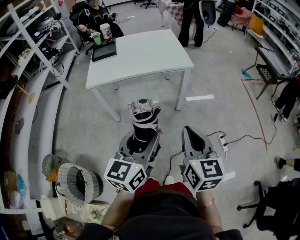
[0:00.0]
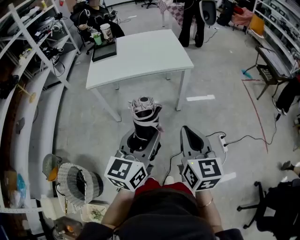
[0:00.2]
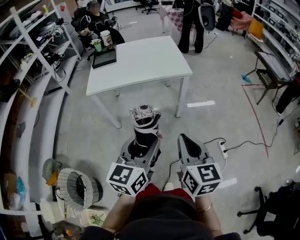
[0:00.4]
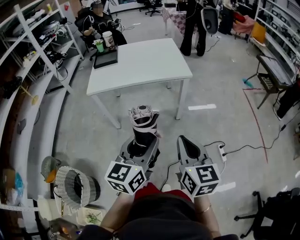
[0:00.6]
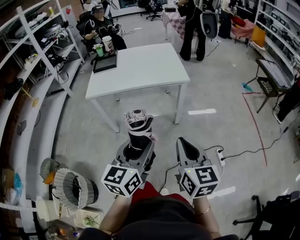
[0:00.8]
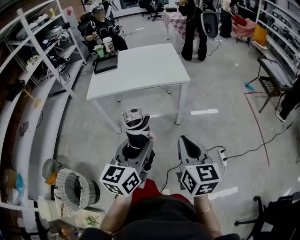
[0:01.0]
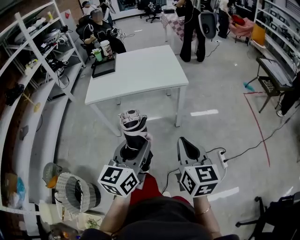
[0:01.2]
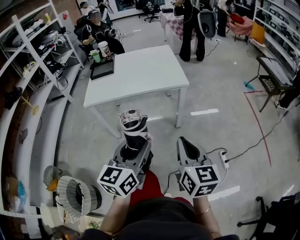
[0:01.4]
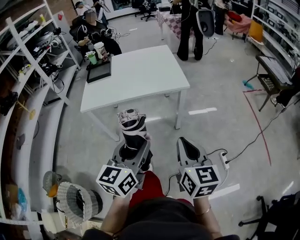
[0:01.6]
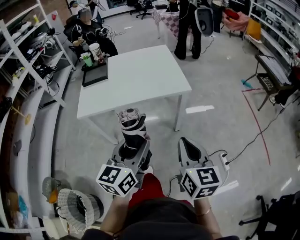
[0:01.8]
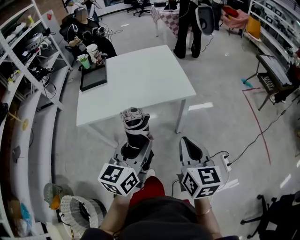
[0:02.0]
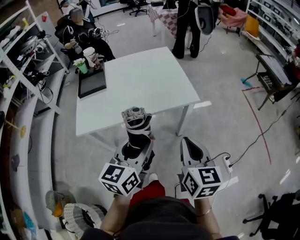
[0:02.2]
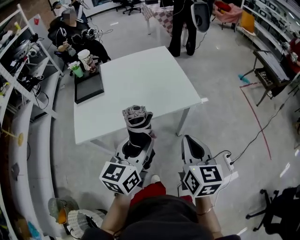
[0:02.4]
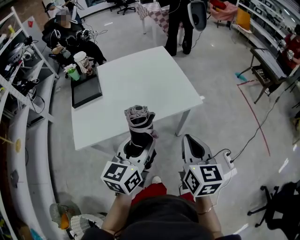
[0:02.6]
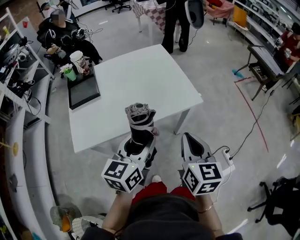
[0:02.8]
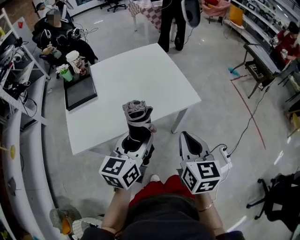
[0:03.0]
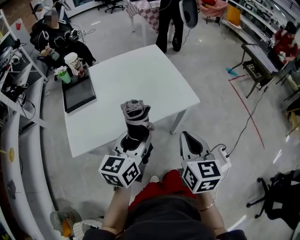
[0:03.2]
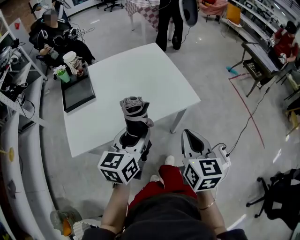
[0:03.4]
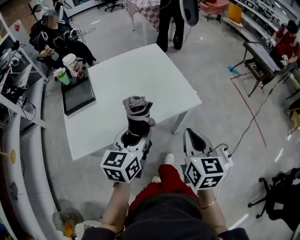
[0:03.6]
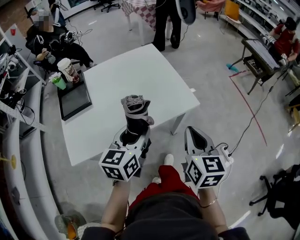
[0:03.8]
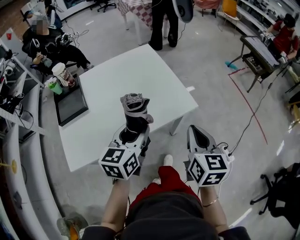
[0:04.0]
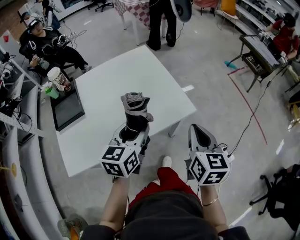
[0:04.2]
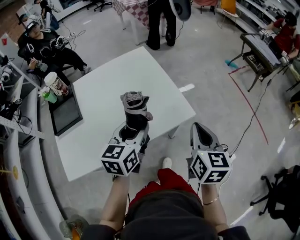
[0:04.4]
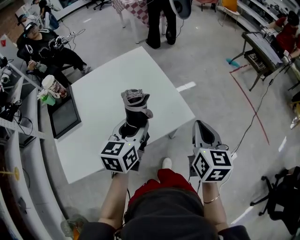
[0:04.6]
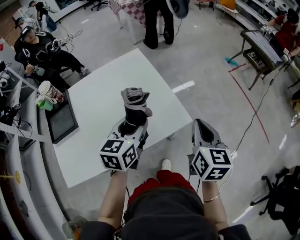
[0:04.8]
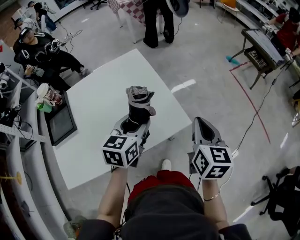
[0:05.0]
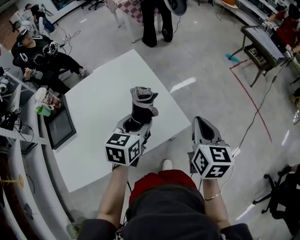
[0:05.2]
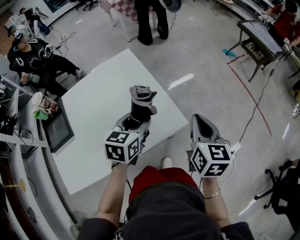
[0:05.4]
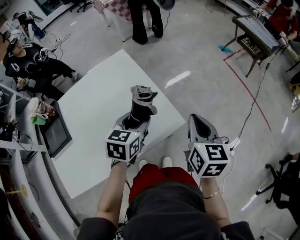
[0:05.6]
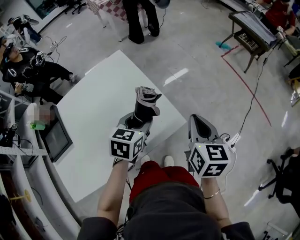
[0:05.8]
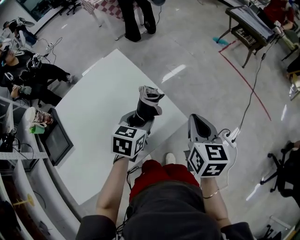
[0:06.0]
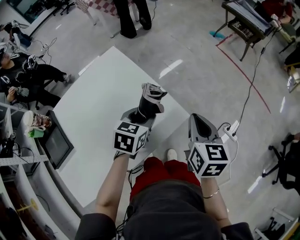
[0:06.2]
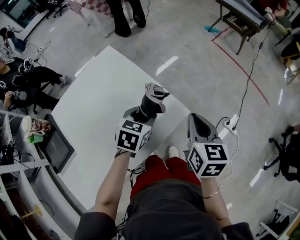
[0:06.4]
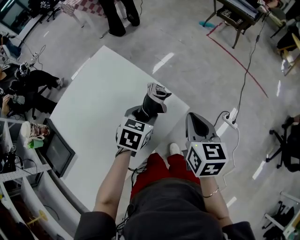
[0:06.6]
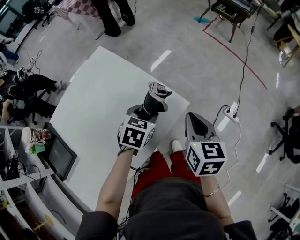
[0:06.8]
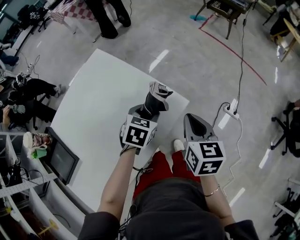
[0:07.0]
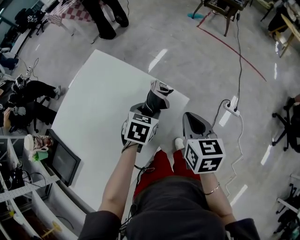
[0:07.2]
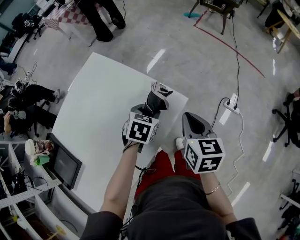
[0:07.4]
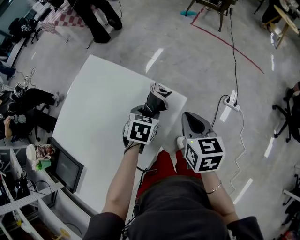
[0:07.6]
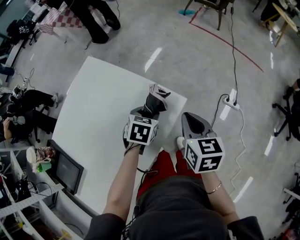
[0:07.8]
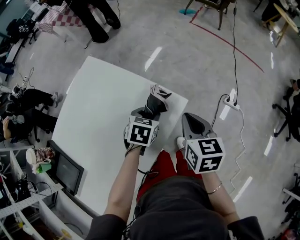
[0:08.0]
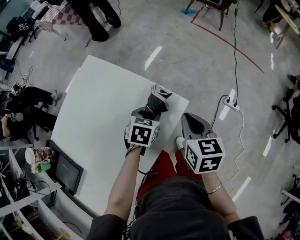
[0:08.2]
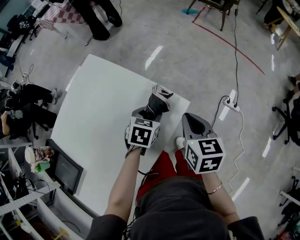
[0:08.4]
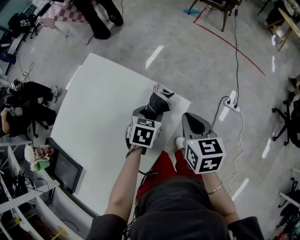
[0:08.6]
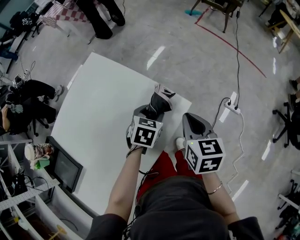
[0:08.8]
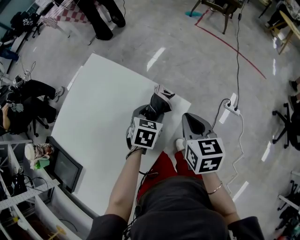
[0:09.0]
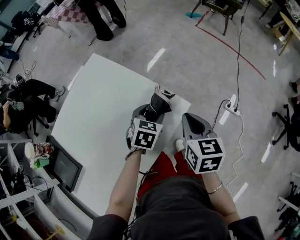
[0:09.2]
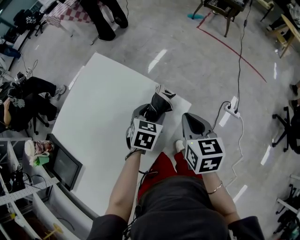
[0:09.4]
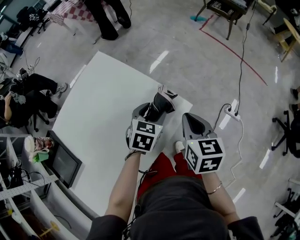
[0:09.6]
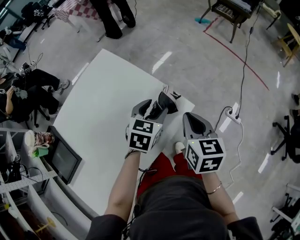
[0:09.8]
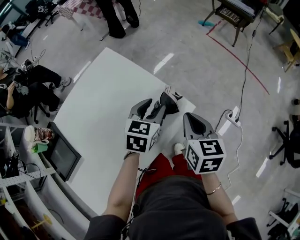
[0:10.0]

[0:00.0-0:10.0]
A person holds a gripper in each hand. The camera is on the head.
0:00.0 to 0:01.4: The grippers both shift forward by approximately 5 cm.
0:01.4 to 0:02.8: The grippers both shift forward and to the left by roughly 35 cm.
0:02.8 to 0:04.2: The left gripper travels forward by about 15 cm, while the right gripper goes roughly 15 cm forward and to the right.
0:04.2 to 0:05.8: The right gripper is displaced forward and to the right by some 15 cm, while the left gripper shifts about 20 cm forward, to the right and downward, and rotates some 30 degrees.
0:05.8 to 0:07.2: The left gripper travels downward by some 10 cm, and changes its angle by some 30 degrees. Meanwhile the right gripper moves backward and downward, approximately 10 cm.
0:07.2 to 0:08.6: The grippers stay close to where they were, moving slightly.
0:08.6 to 0:10.0: The left gripper heads upward, covering some 10 cm, and rotates some 20 degrees.

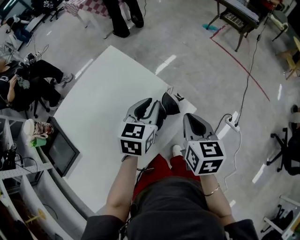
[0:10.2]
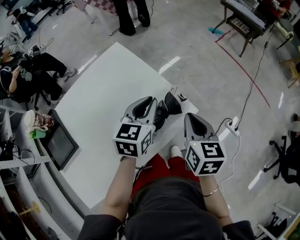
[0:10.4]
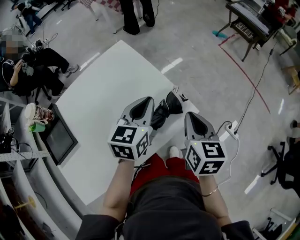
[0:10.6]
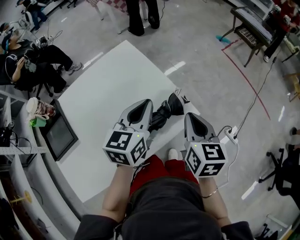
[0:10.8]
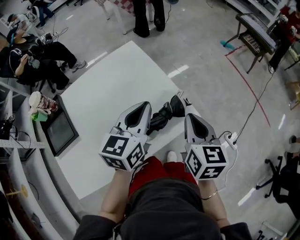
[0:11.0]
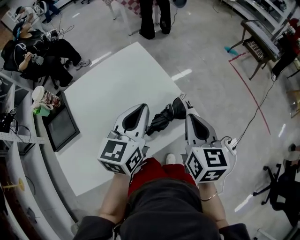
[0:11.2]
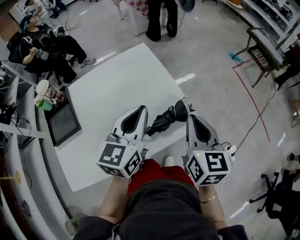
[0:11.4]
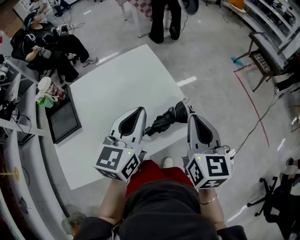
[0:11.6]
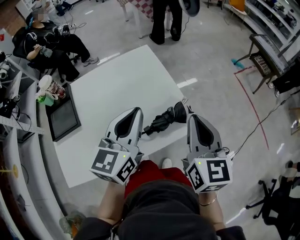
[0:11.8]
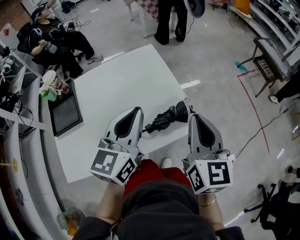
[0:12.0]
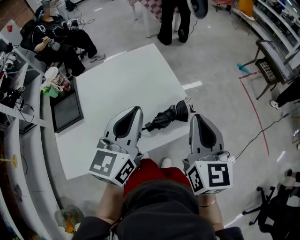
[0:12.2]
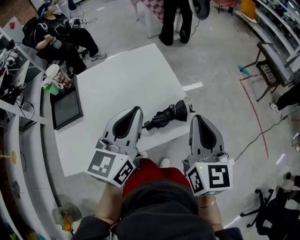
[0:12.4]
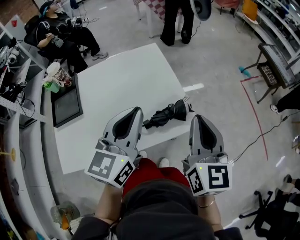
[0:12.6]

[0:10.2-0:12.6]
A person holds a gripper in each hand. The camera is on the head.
0:10.2 to 0:11.4: The left gripper goes about 15 cm upward, to the left and backward, and rotates approximately 30 degrees, while the right gripper goes roughly 10 cm upward.
0:11.4 to 0:12.6: The right gripper moves upward, about 5 cm, while the left gripper is displaced backward and upward by approximately 10 cm.

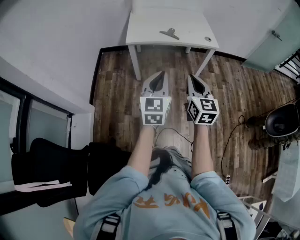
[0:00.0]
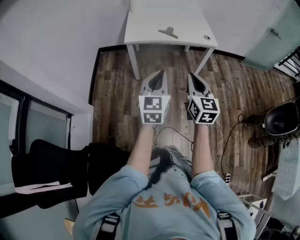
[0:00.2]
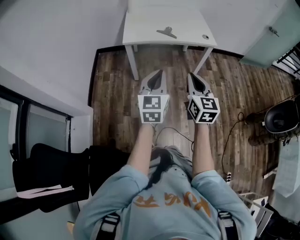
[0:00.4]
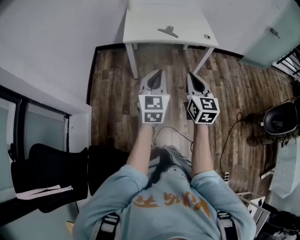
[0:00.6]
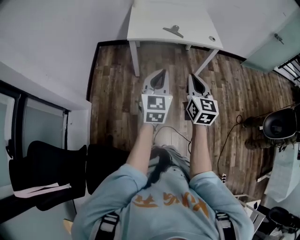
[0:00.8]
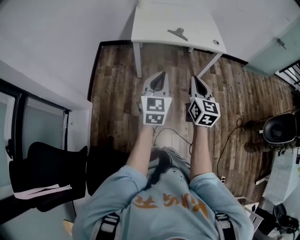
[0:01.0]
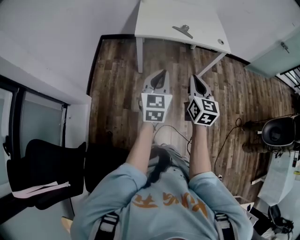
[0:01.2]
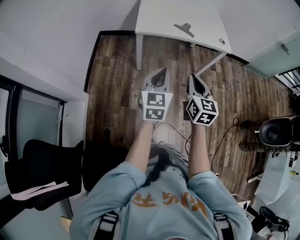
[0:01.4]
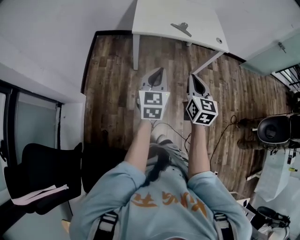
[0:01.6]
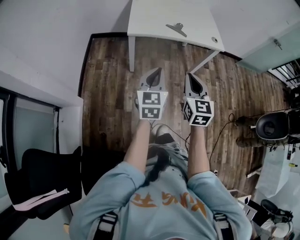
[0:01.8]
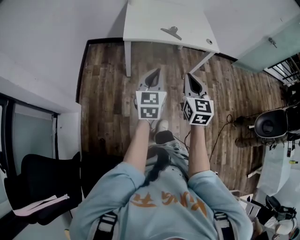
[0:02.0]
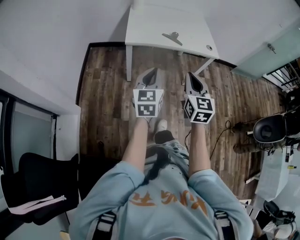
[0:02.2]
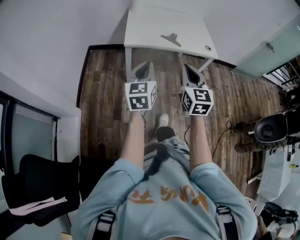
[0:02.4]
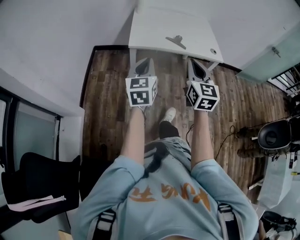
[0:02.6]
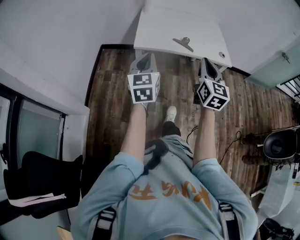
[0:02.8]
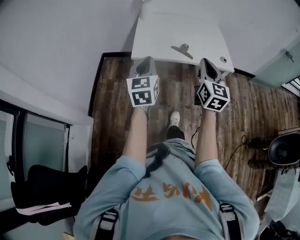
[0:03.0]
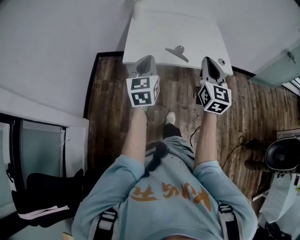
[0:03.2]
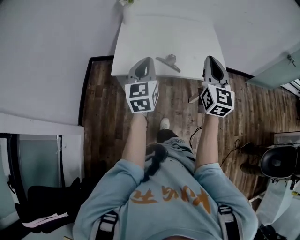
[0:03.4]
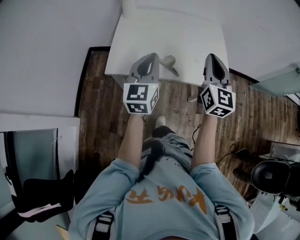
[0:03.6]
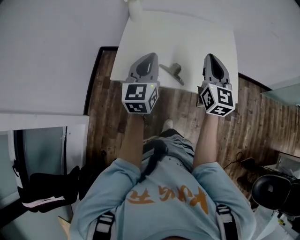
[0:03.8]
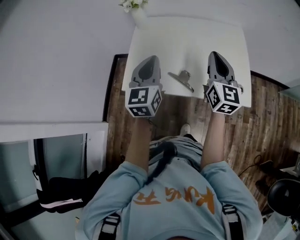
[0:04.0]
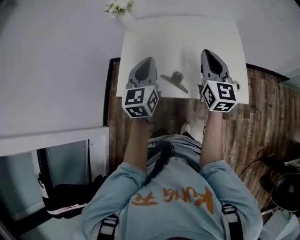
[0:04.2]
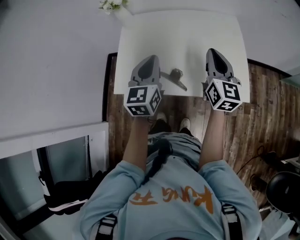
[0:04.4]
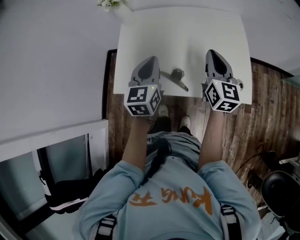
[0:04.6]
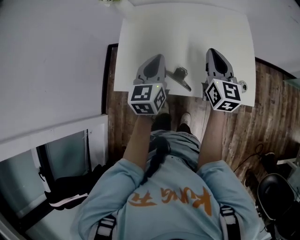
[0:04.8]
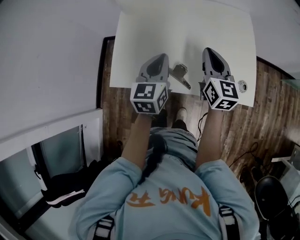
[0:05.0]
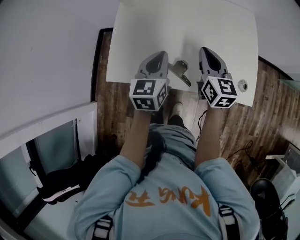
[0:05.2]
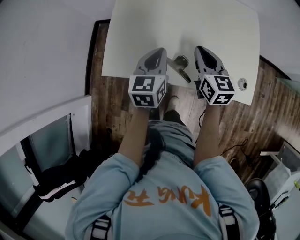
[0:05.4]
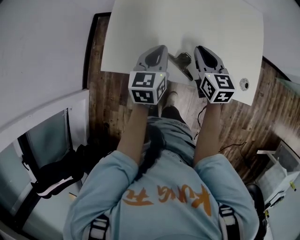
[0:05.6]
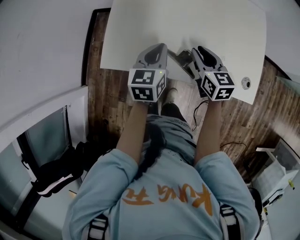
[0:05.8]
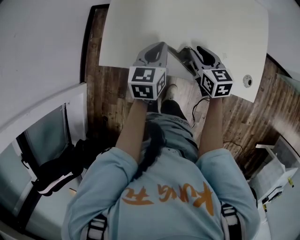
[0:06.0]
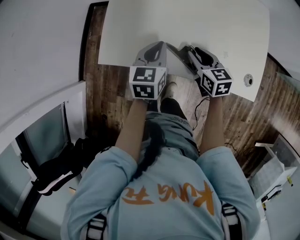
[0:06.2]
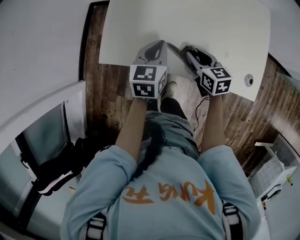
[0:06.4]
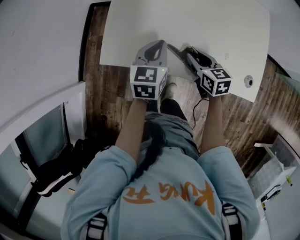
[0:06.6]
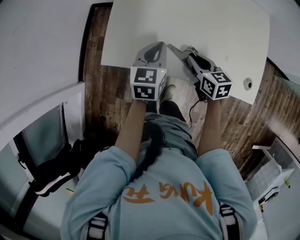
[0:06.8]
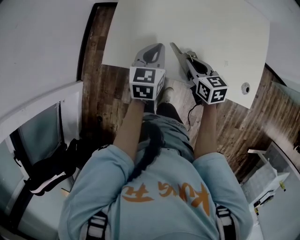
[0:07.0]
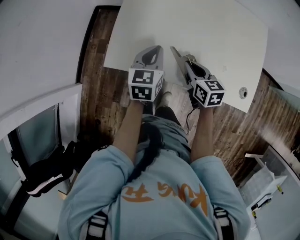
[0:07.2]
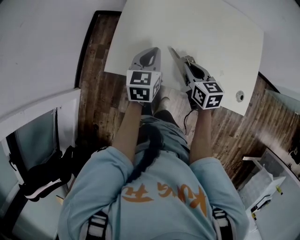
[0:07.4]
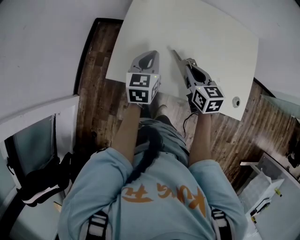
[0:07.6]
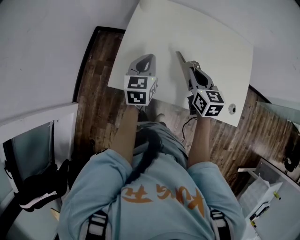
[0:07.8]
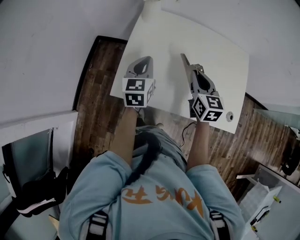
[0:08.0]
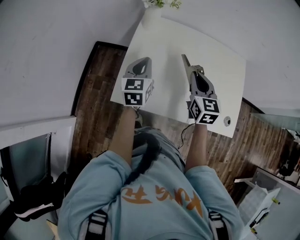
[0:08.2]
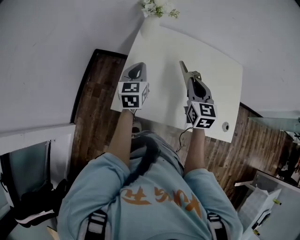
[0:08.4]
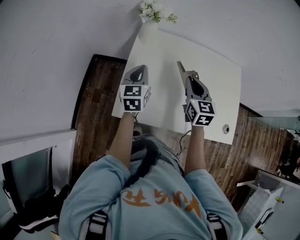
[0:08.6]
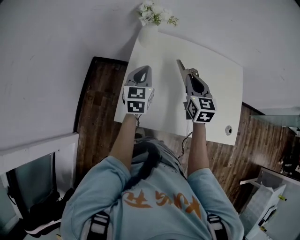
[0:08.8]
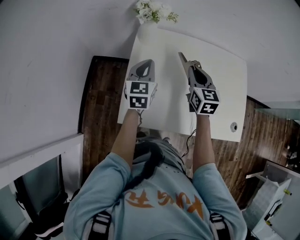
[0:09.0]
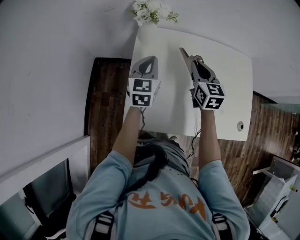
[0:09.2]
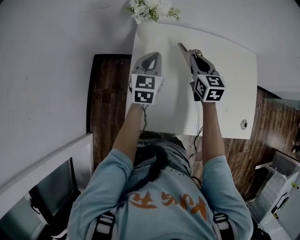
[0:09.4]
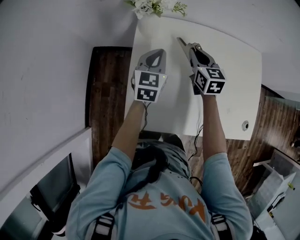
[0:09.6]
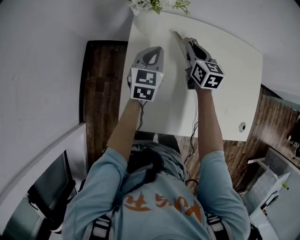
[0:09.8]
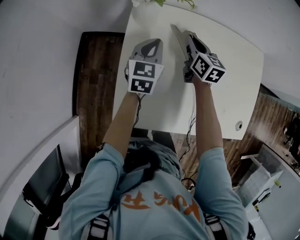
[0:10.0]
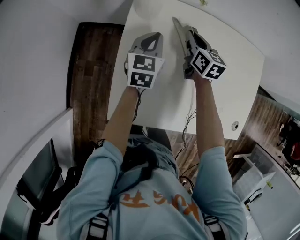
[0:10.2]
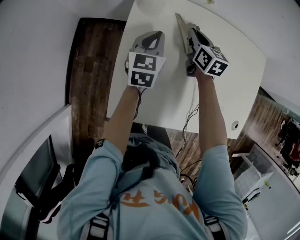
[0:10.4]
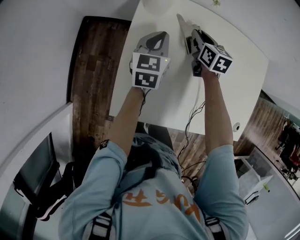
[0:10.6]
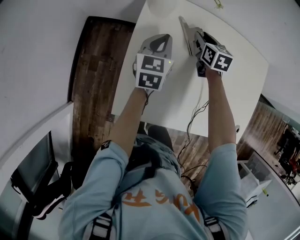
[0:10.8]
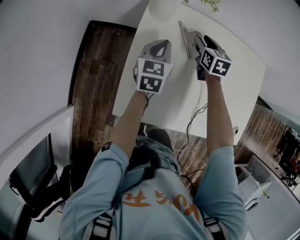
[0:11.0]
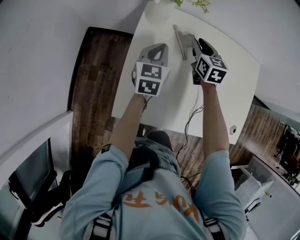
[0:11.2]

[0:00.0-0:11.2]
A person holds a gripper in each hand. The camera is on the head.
0:00.0 to 0:01.6: The grippers both shift to the left, forward and downward by approximately 15 cm.
0:01.6 to 0:03.2: The two grippers go approximately 25 cm forward.
0:03.2 to 0:04.8: The right gripper moves forward, roughly 35 cm, and rotates about 20 degrees; the left gripper moves forward and to the right, about 35 cm.
0:04.8 to 0:06.4: The left gripper shifts some 15 cm downward and to the left; the right gripper shifts about 25 cm downward and to the left, turns by approximately 40 degrees, and opens its fingers.
0:06.4 to 0:08.0: The left gripper goes roughly 15 cm to the left, upward and forward; the right gripper moves upward and forward, approximately 20 cm, rotates roughly 20 degrees, and closes its fingers.
0:08.0 to 0:09.6: Both grippers travel together forward, approximately 20 cm.
0:09.6 to 0:11.2: The right gripper reaches about 10 cm downward, then returns.
